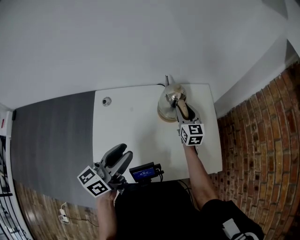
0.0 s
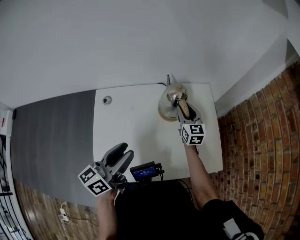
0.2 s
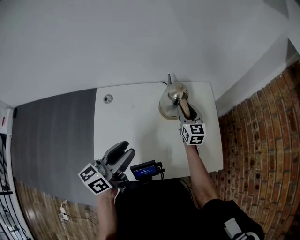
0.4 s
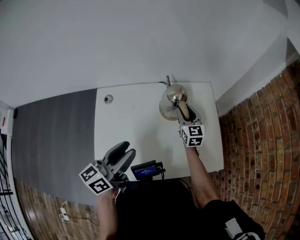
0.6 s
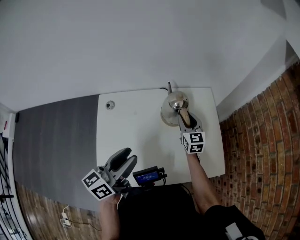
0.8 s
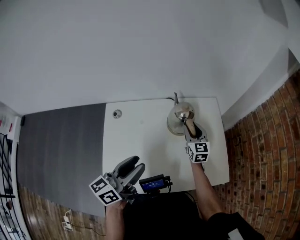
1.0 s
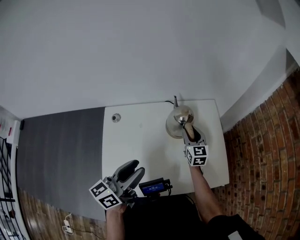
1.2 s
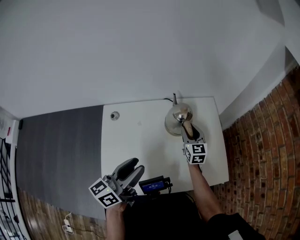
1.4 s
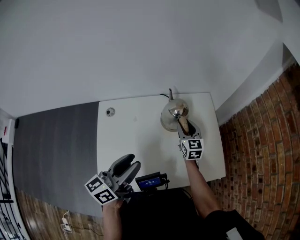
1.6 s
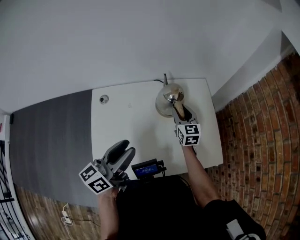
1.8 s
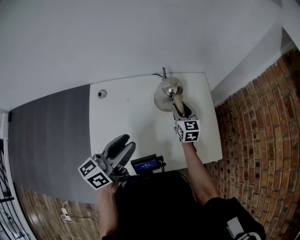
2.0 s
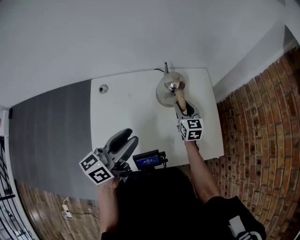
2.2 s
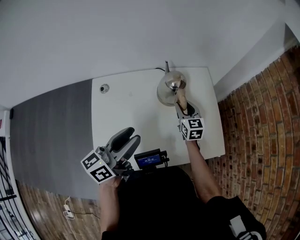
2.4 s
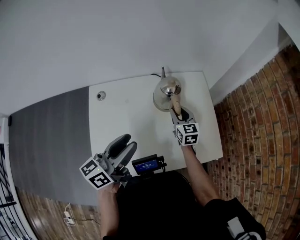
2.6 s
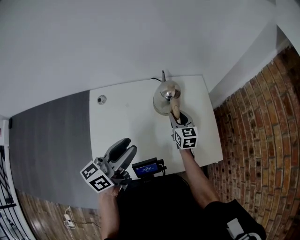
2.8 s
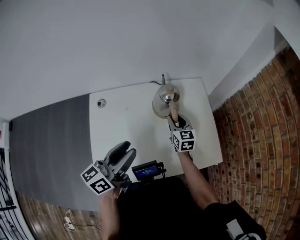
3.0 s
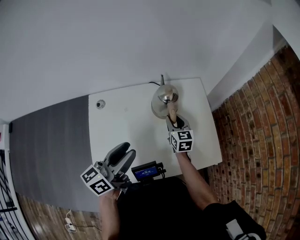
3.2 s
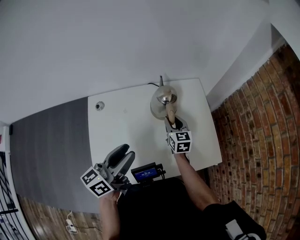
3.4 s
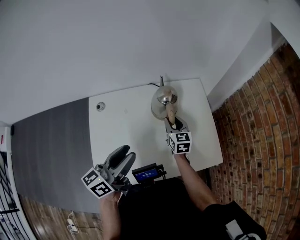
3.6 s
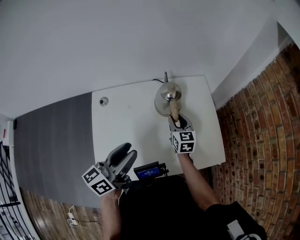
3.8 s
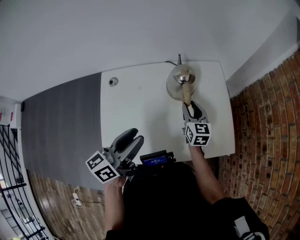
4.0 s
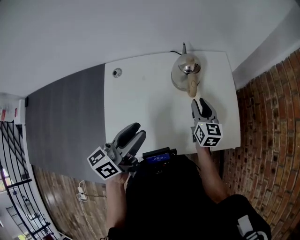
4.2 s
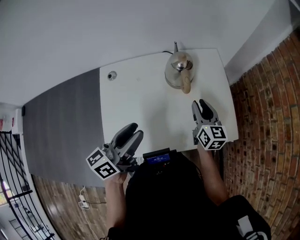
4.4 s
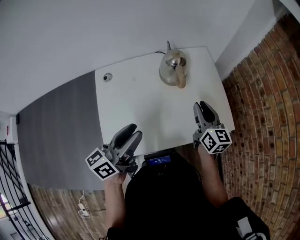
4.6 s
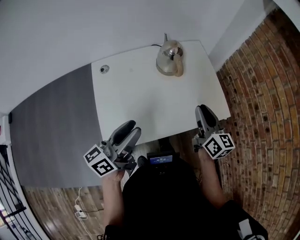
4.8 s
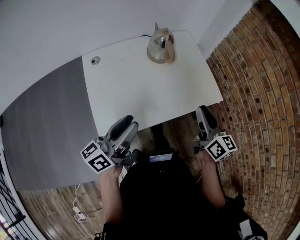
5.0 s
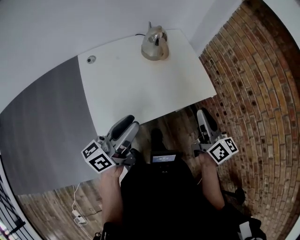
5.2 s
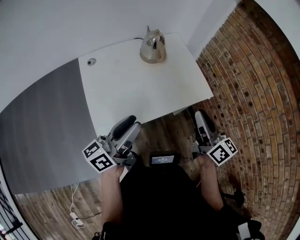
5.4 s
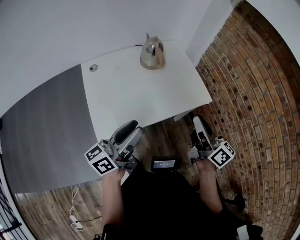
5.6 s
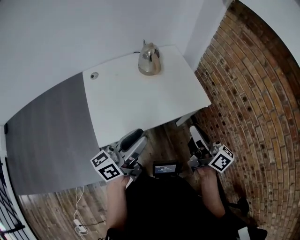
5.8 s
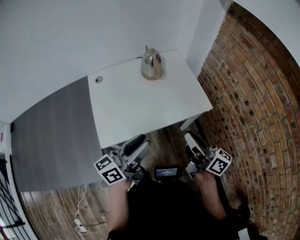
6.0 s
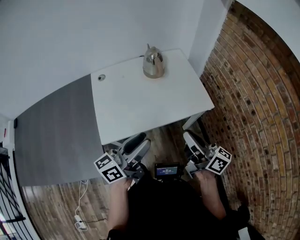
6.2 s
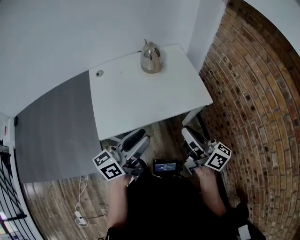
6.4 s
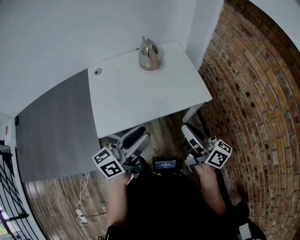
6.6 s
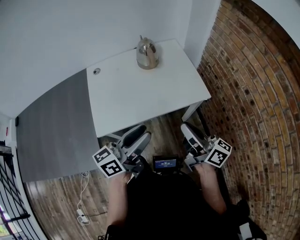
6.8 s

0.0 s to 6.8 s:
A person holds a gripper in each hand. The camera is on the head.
0.0 to 1.4 s: There are only small adjustments of the grippers.
1.4 to 4.0 s: There are only small adjustments of the grippers.
4.0 to 5.4 s: The right gripper moves backward and upward, roughly 35 cm, and rotates about 30 degrees; the left gripper moves backward, approximately 20 cm, and turns by some 20 degrees.
5.4 to 6.8 s: The left gripper goes roughly 15 cm to the right. Meanwhile the right gripper travels backward by some 5 cm, and rotates about 30 degrees.

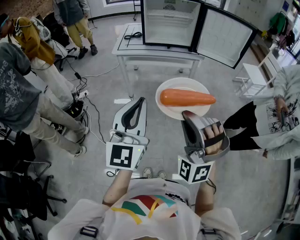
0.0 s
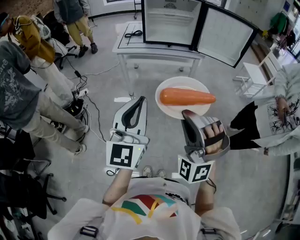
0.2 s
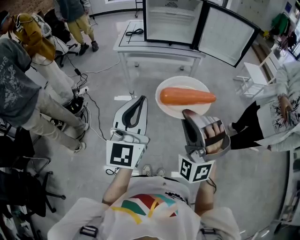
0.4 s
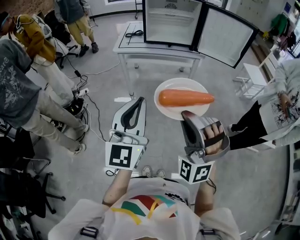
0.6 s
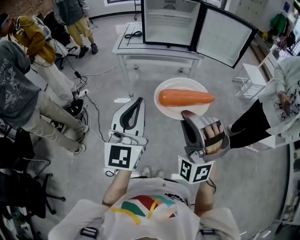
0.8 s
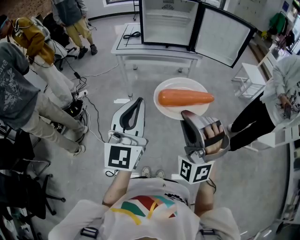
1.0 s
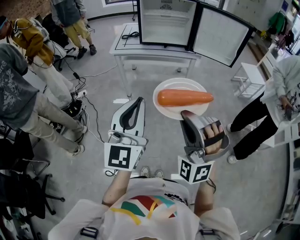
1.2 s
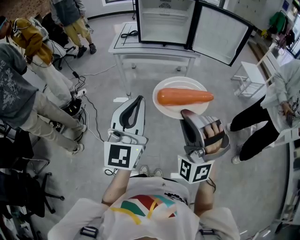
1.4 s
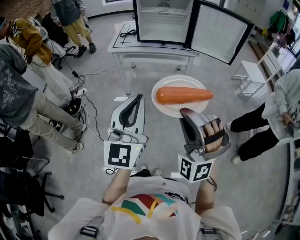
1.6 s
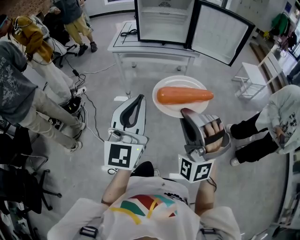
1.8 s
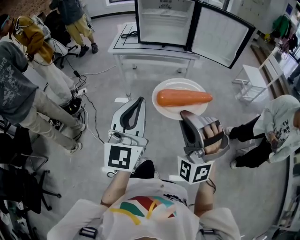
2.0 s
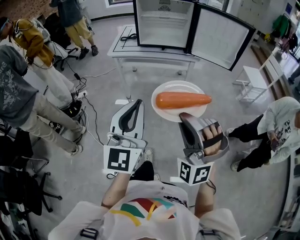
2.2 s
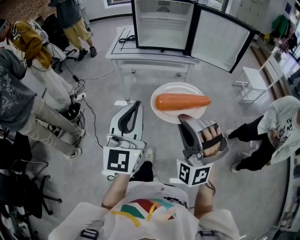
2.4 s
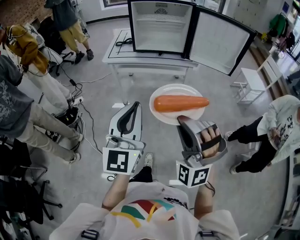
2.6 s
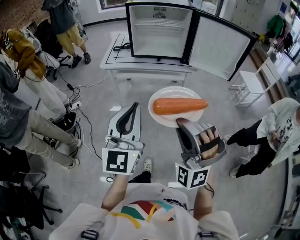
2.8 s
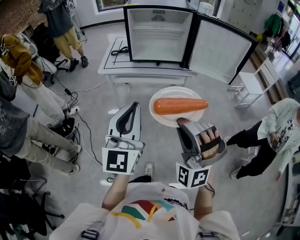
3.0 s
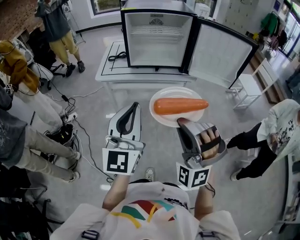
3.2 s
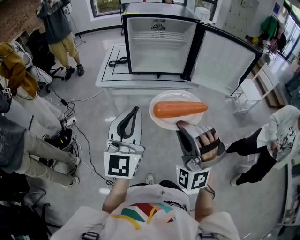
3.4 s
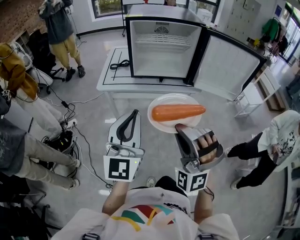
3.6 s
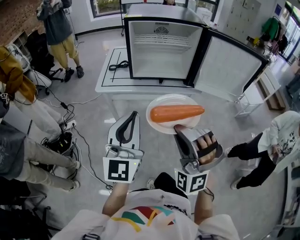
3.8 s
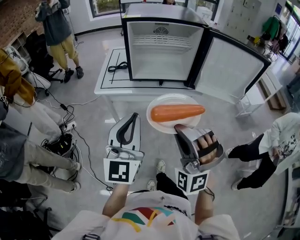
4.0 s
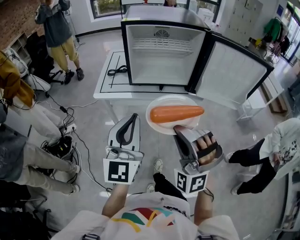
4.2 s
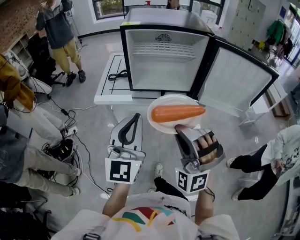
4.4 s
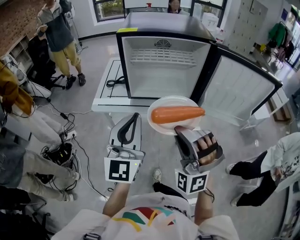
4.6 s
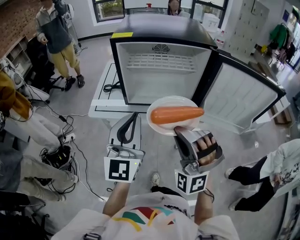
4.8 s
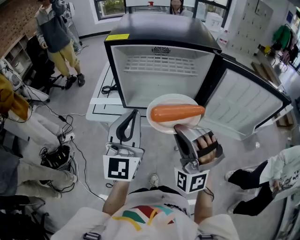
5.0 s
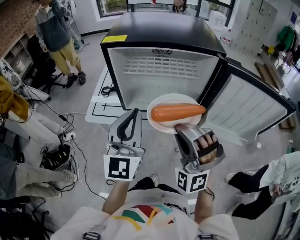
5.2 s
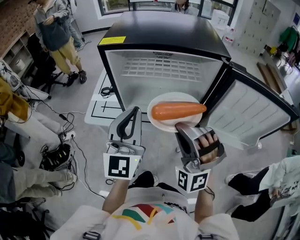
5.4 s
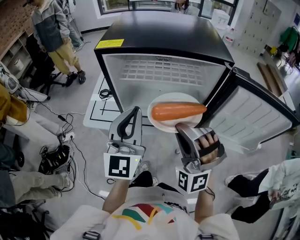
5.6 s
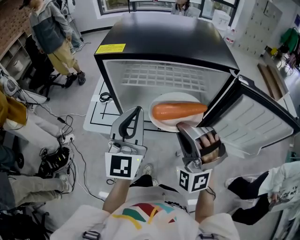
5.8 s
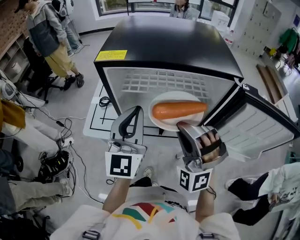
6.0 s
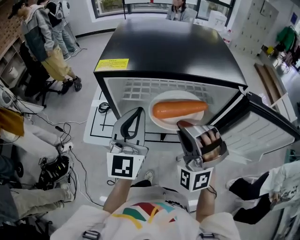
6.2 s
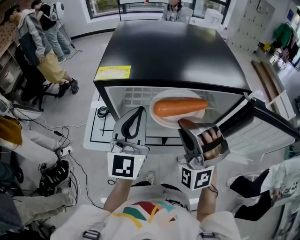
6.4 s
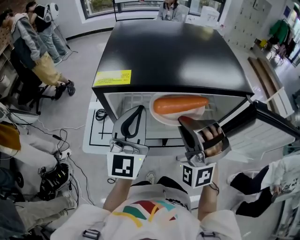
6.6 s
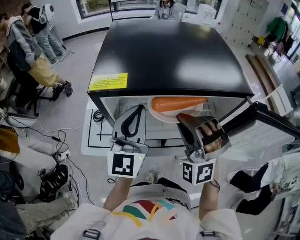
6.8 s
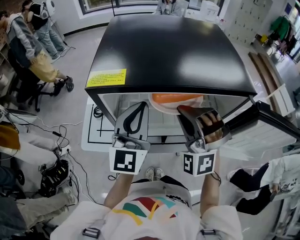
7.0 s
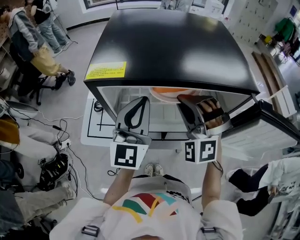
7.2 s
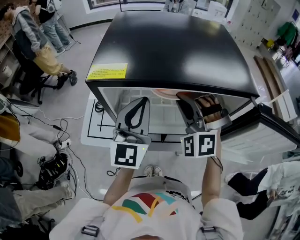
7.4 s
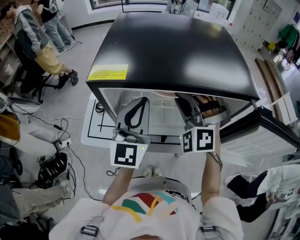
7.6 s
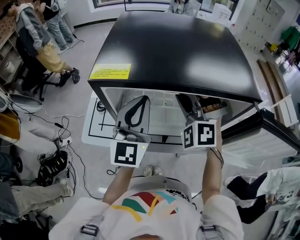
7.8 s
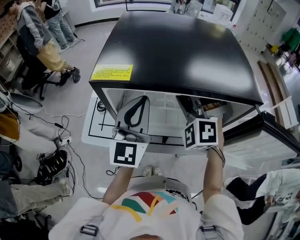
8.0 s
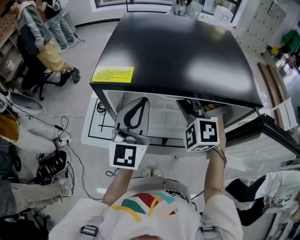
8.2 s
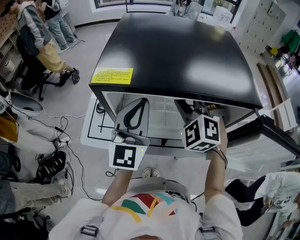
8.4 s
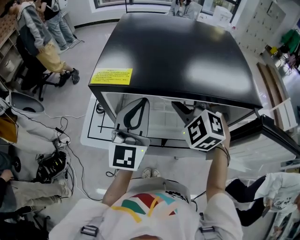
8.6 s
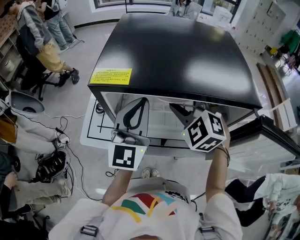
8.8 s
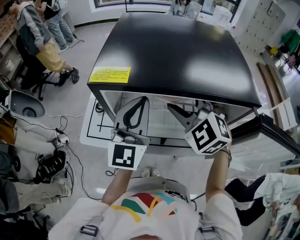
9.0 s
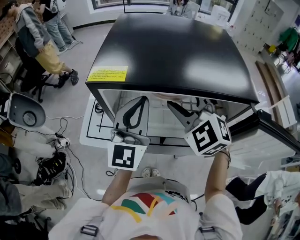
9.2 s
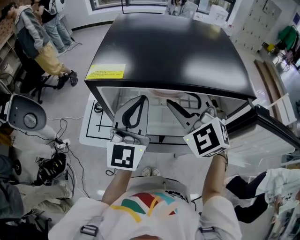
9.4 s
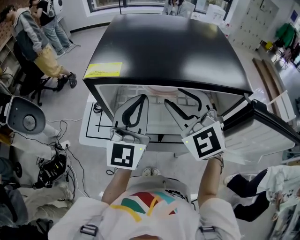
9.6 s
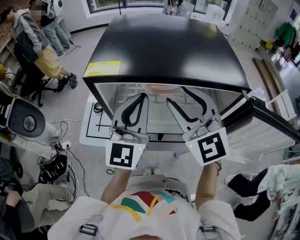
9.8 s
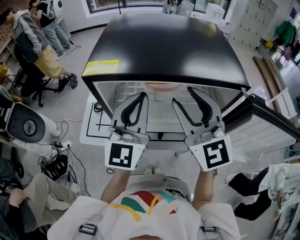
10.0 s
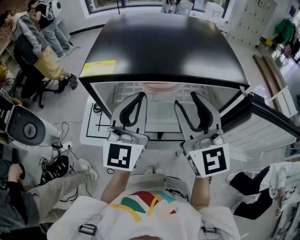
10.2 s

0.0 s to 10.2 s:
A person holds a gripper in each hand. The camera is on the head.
0.0 to 1.4 s: The grippers stay close to where they were, moving slightly.
1.4 to 3.0 s: Both grippers move forward, some 15 cm.
3.0 to 4.4 s: The grippers both shift forward by approximately 20 cm.
4.4 to 5.8 s: The grippers both shift forward by roughly 25 cm.
5.8 to 7.2 s: The grippers both shift forward by roughly 15 cm.
7.2 to 8.8 s: The right gripper turns by approximately 30 degrees, and opens its fingers.
8.8 to 10.2 s: The right gripper is displaced upward and backward by about 15 cm, and angles its fingers upward, by about 40 degrees. Meanwhile the left gripper changes place by roughly 5 cm.

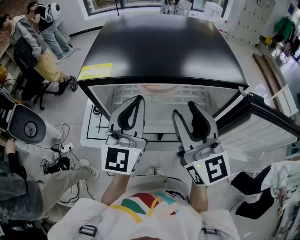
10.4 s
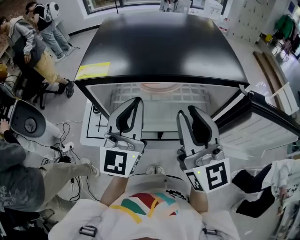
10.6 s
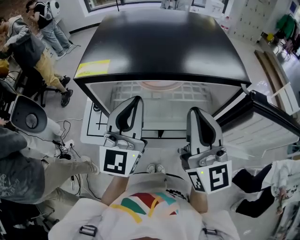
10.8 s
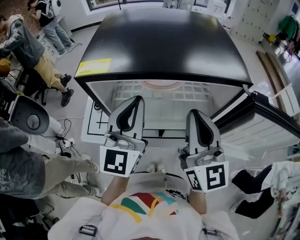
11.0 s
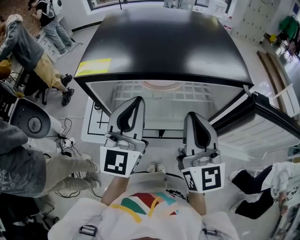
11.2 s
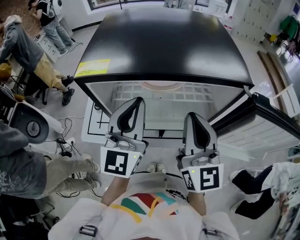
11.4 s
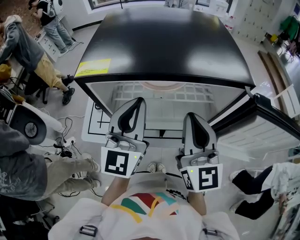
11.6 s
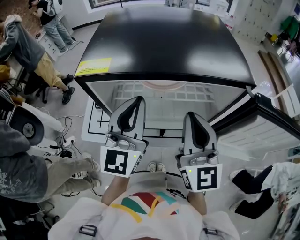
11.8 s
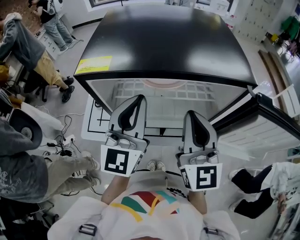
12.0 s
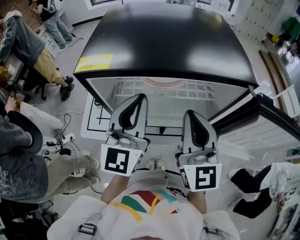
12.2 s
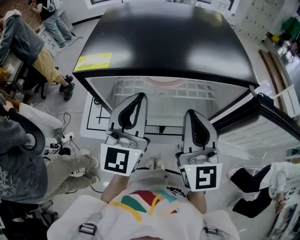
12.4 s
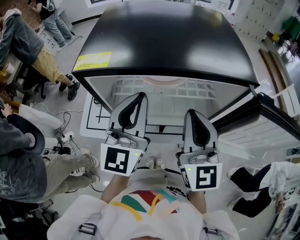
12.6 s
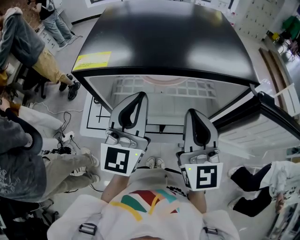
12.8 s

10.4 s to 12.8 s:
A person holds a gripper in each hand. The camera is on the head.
10.4 to 11.6 s: The right gripper closes.
11.6 to 12.8 s: The grippers make only small movements.

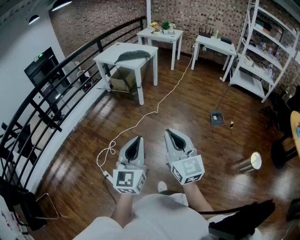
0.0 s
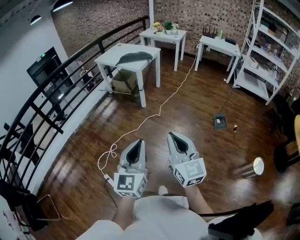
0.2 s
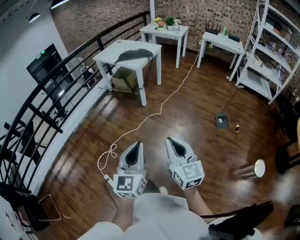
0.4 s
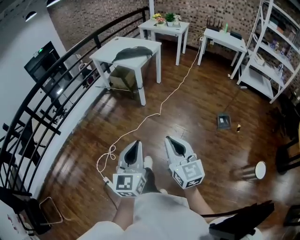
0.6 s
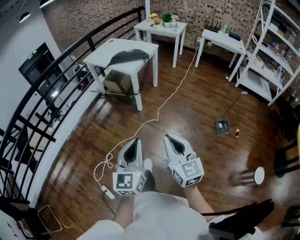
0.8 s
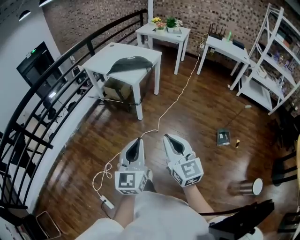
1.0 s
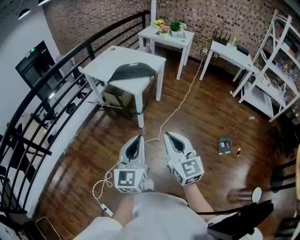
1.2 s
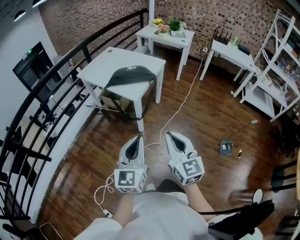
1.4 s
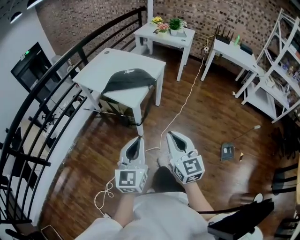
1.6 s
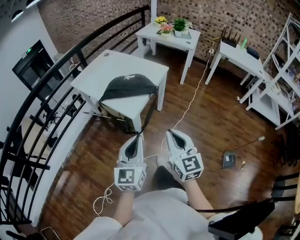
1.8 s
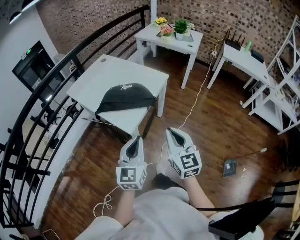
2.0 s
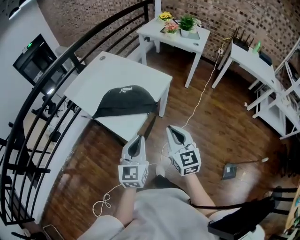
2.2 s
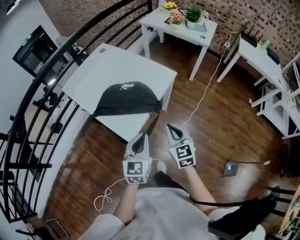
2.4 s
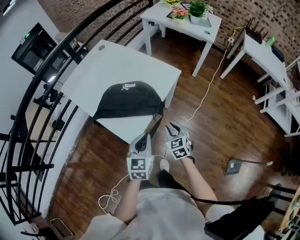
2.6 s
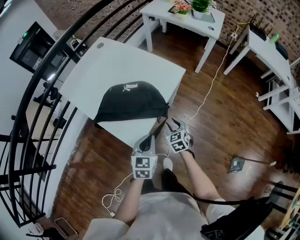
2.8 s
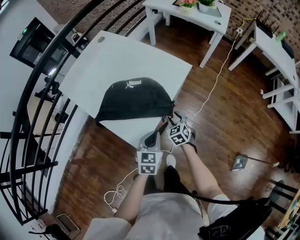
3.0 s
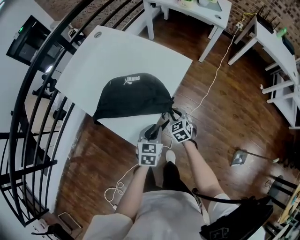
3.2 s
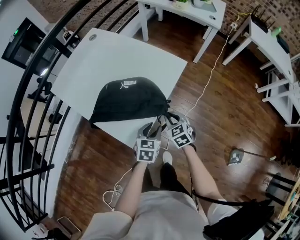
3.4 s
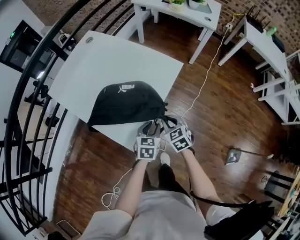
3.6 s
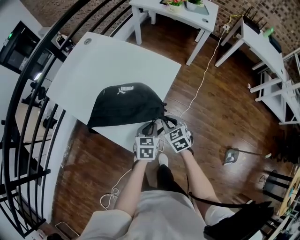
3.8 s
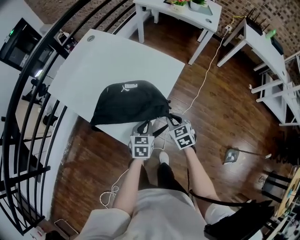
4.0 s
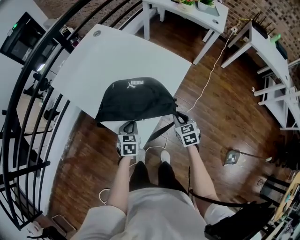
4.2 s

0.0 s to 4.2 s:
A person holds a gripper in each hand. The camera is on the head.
0.0 to 1.4 s: The two grippers travel together, forward, approximately 60 cm.
1.4 to 2.8 s: Both grippers are carried forward, approximately 50 cm. The grippers both shift downward by approximately 30 cm. The right gripper points its fingers some 40 degrees further downward, and opens its fingers. Meanwhile the left gripper tips its fingers downward by roughly 30 degrees.
2.8 to 4.2 s: The left gripper heads to the left, downward and forward, covering about 20 cm, and opens and closes again.
